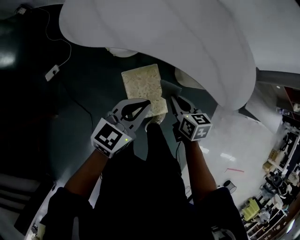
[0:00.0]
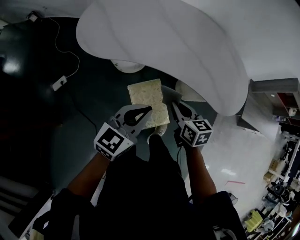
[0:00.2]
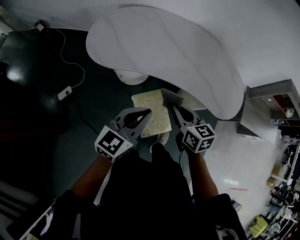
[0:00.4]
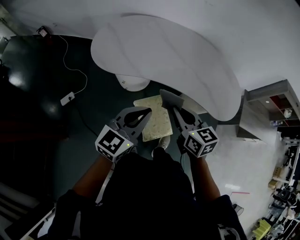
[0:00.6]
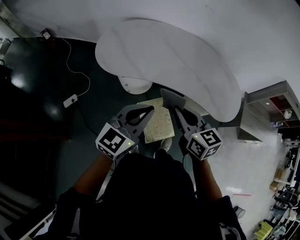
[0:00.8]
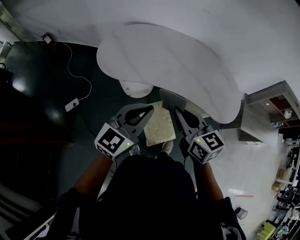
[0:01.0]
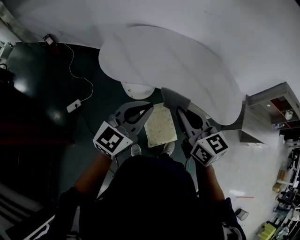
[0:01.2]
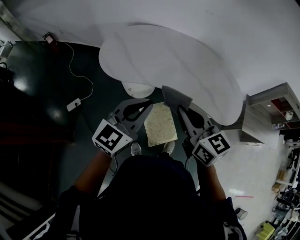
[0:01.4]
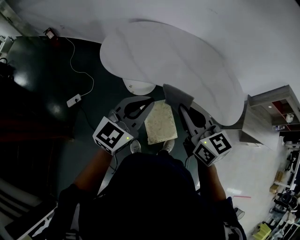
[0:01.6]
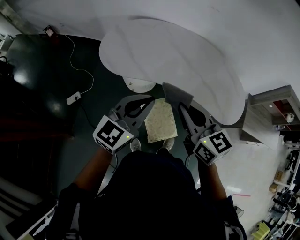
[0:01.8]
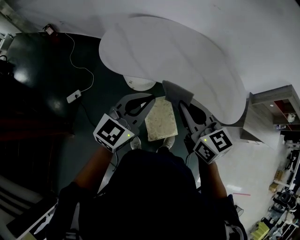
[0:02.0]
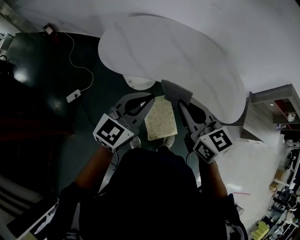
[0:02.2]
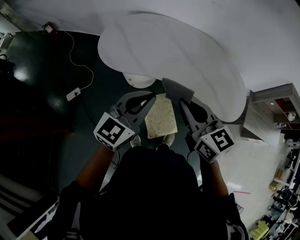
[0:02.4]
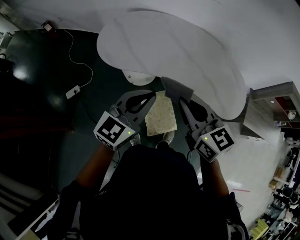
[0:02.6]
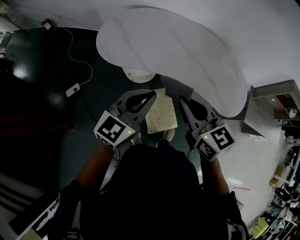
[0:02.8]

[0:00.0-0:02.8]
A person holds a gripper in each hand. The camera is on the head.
0:00.0 to 0:01.4: The right gripper is displaced upward by some 35 cm, and turns by approximately 30 degrees. The left gripper goes about 25 cm upward and to the left, and rotates approximately 20 degrees.
0:01.4 to 0:02.8: The grippers make only small movements.

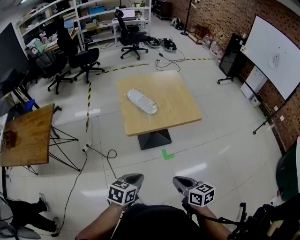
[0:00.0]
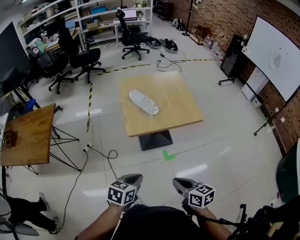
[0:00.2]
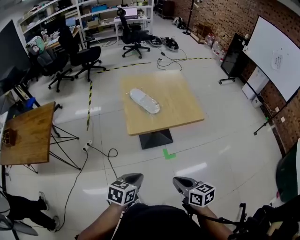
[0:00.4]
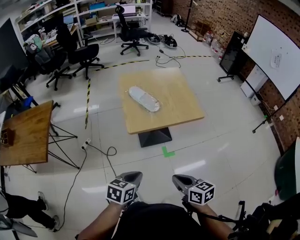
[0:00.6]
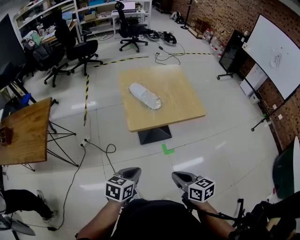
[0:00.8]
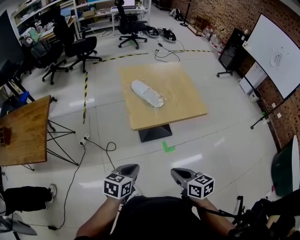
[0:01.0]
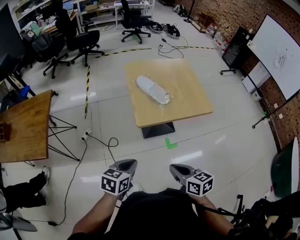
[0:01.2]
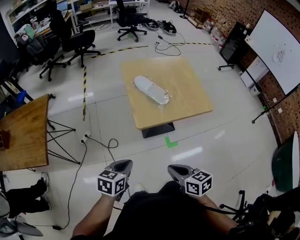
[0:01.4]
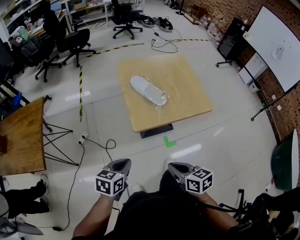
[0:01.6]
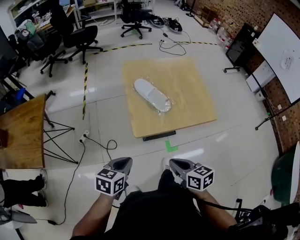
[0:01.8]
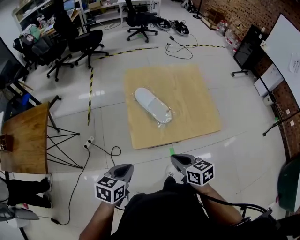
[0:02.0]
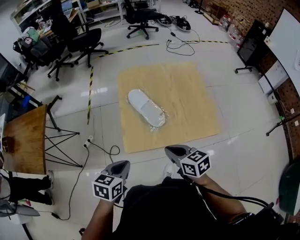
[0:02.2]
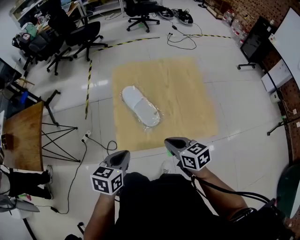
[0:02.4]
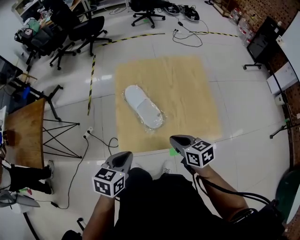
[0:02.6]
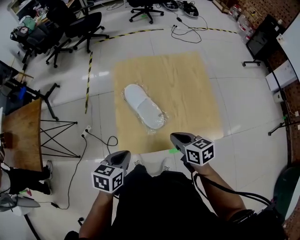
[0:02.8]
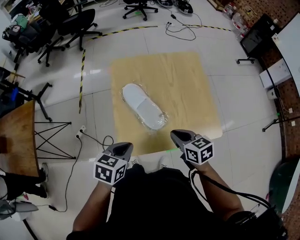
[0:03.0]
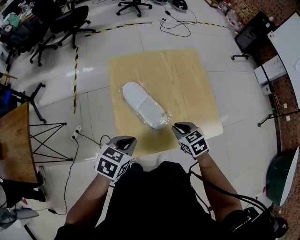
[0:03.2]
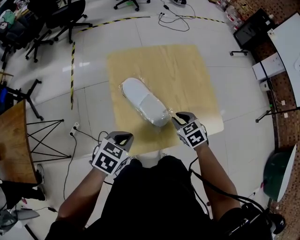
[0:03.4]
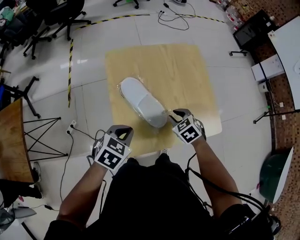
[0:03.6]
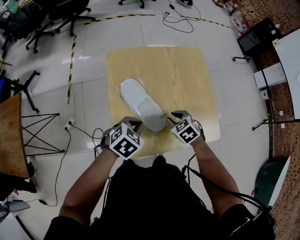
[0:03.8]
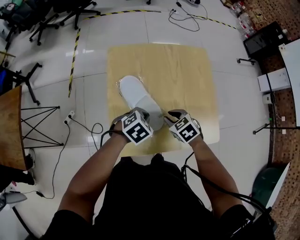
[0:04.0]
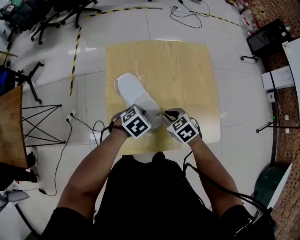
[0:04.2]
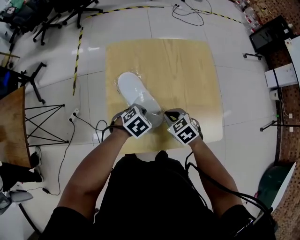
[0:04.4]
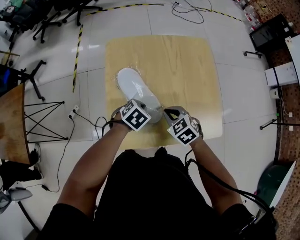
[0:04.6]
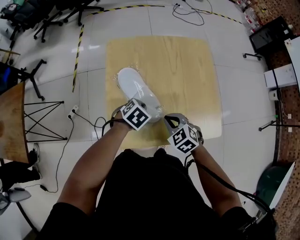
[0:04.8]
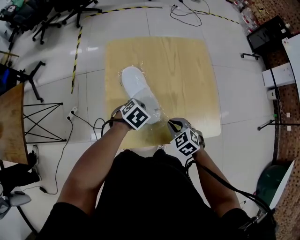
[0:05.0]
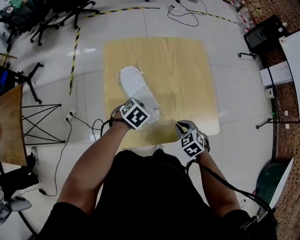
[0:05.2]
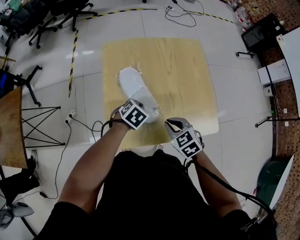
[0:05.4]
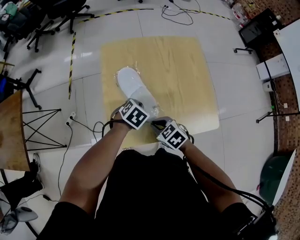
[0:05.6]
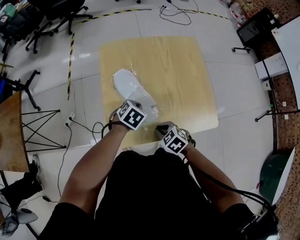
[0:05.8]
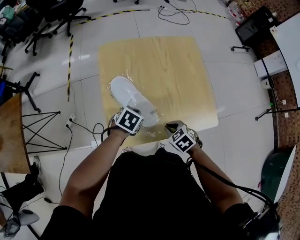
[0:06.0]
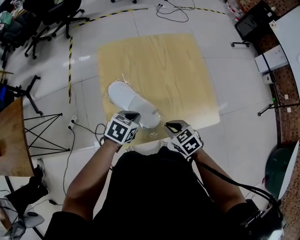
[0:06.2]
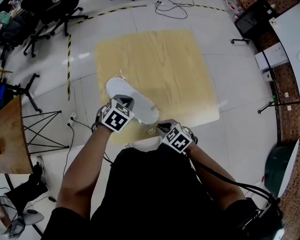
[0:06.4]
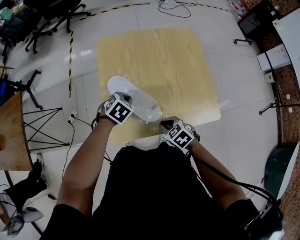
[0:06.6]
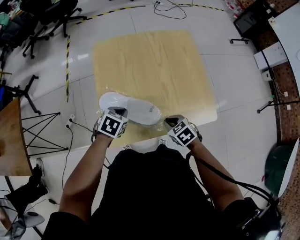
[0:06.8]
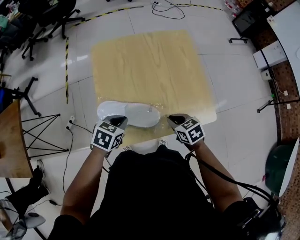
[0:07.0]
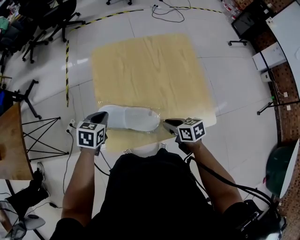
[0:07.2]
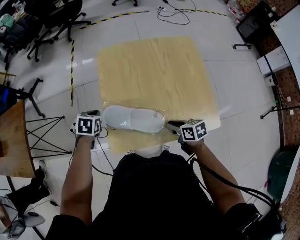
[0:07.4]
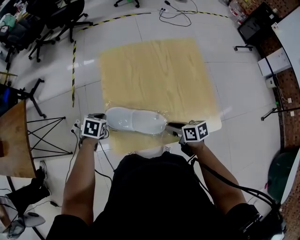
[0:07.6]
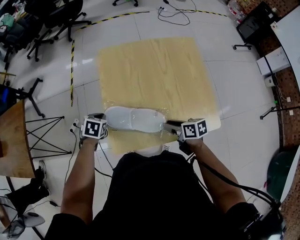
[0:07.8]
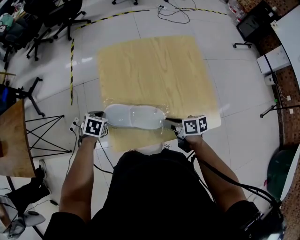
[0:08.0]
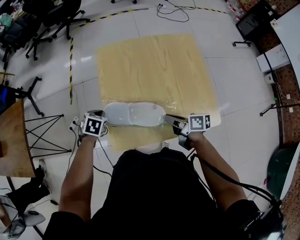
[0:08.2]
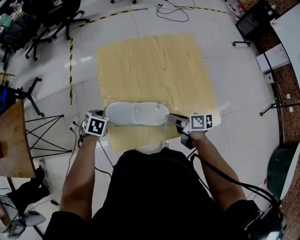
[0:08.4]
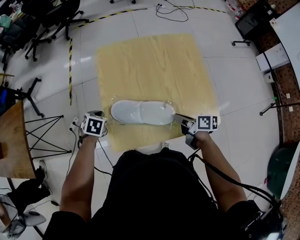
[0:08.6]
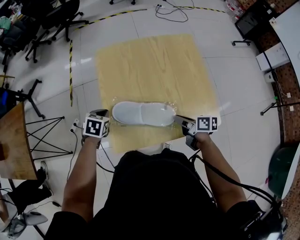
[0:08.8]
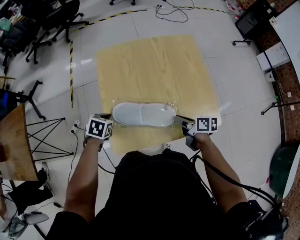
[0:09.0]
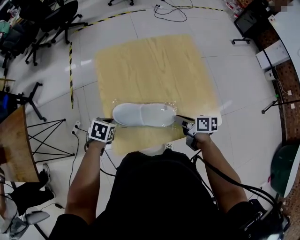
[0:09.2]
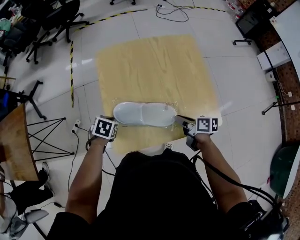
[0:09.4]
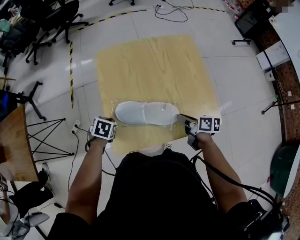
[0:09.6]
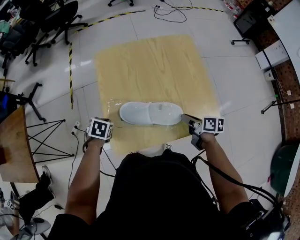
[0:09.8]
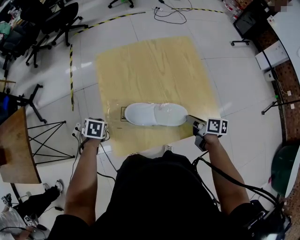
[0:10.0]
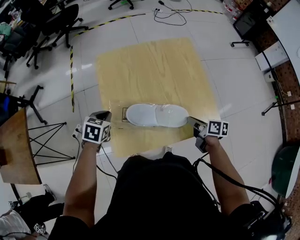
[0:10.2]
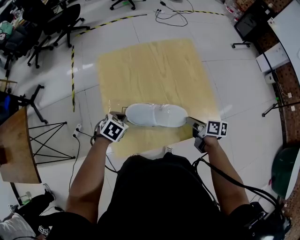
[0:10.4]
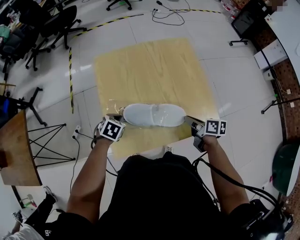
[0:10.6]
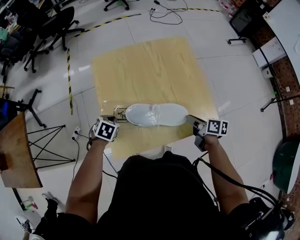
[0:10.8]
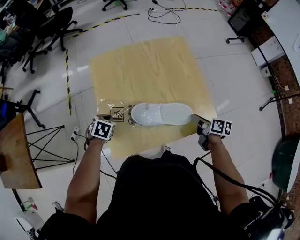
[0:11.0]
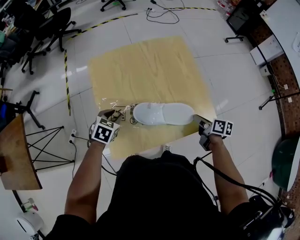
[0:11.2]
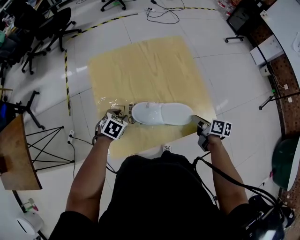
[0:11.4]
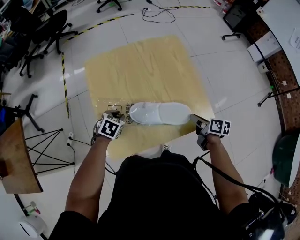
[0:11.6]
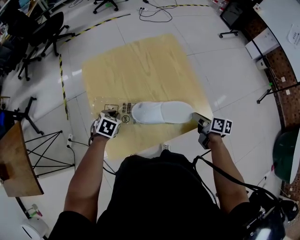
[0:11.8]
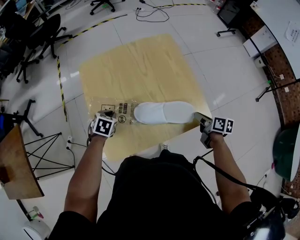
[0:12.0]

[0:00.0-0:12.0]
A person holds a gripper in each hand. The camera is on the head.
0:00.0 to 0:01.6: Both grippers travel together to the left and forward, about 15 cm.
0:01.6 to 0:03.0: The grippers both shift forward and to the right by some 30 cm.
0:03.0 to 0:04.4: The left gripper heads downward, forward and to the right, covering approximately 20 cm, and swivels some 30 degrees. Meanwhile the right gripper travels downward and forward by about 15 cm, and changes its angle by roughly 30 degrees.
0:04.4 to 0:06.0: The right gripper goes left and right, some 10 cm each way, reversing 2 times.
0:06.0 to 0:07.6: The right gripper changes its angle by about 50 degrees. The left gripper ends up approximately 20 cm from where it was.
0:07.6 to 0:09.0: The right gripper goes some 5 cm to the right, and rotates roughly 20 degrees.
0:09.0 to 0:10.4: Both grippers travel together to the right, about 5 cm.
0:10.4 to 0:12.0: The right gripper heads to the right, covering some 10 cm. Meanwhile the left gripper travels to the left and back again, some 5 cm each way, and opens, then closes again.

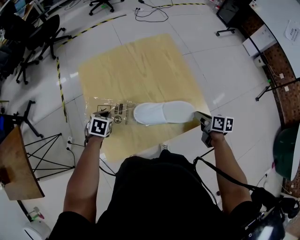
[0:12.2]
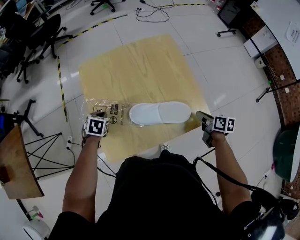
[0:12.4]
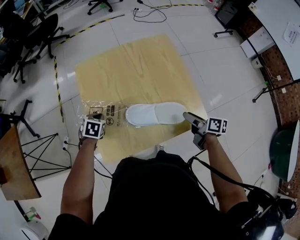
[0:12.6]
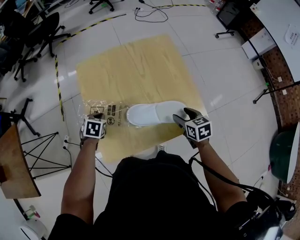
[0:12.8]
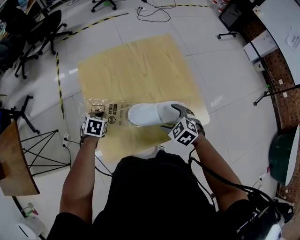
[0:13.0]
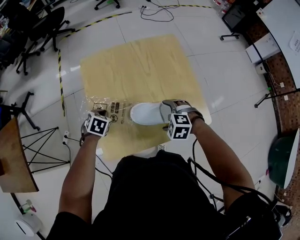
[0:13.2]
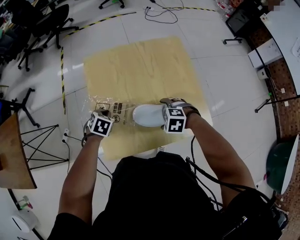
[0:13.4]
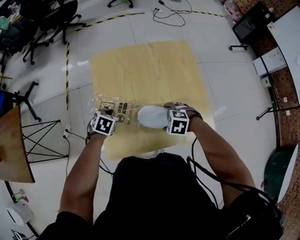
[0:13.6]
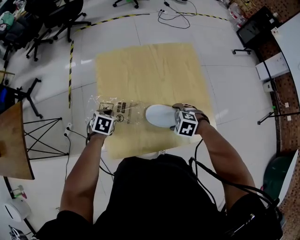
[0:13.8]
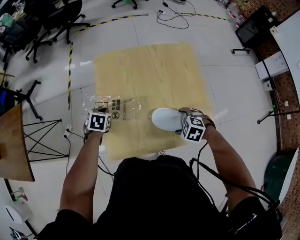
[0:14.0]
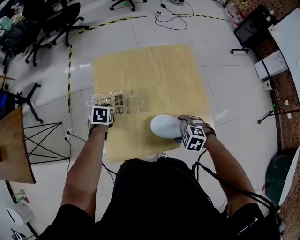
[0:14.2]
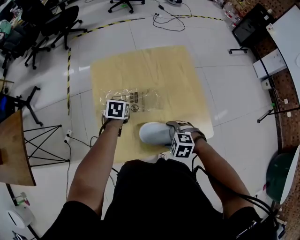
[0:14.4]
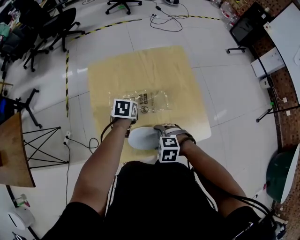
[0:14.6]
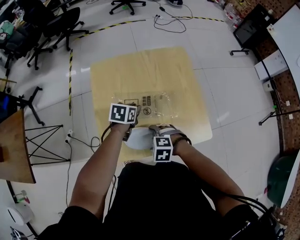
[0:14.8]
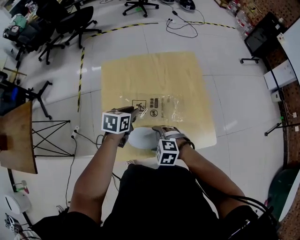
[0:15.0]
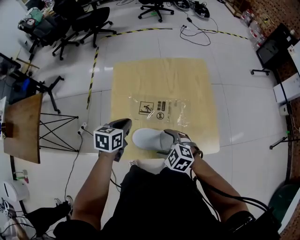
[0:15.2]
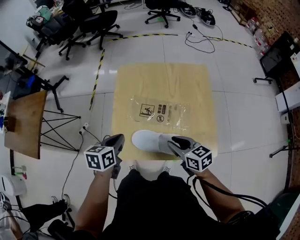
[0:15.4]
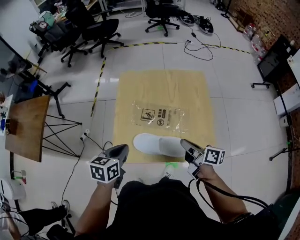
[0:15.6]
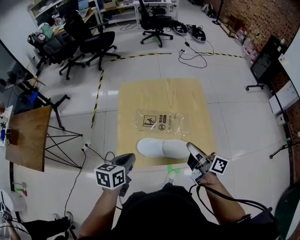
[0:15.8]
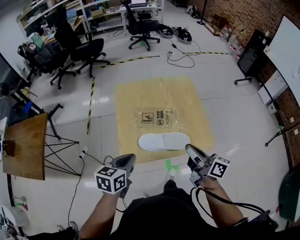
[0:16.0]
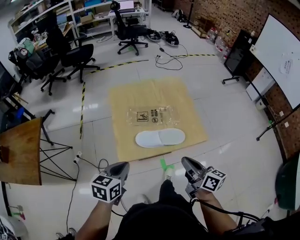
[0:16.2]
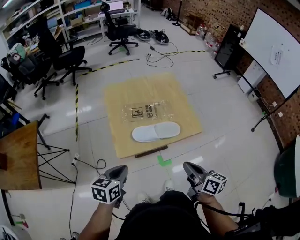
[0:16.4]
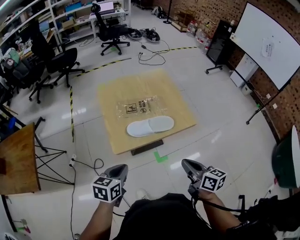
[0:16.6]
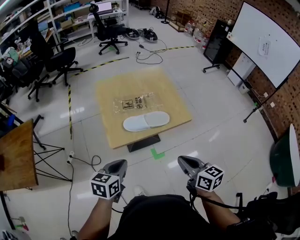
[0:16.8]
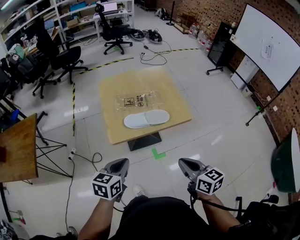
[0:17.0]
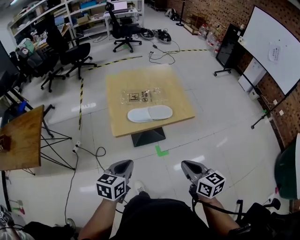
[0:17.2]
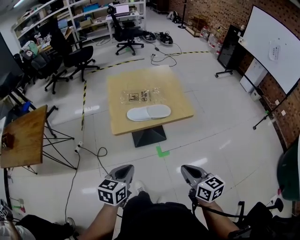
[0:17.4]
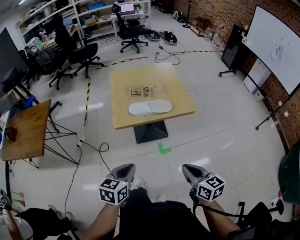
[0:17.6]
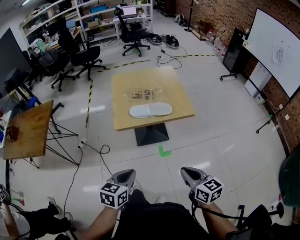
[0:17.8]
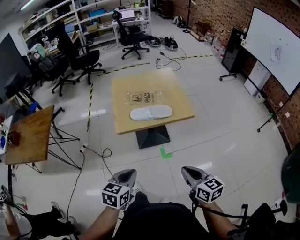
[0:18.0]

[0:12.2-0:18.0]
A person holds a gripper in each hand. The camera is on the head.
0:12.2 to 0:13.6: The right gripper changes place by roughly 20 cm, twists roughly 90 degrees counterclockwise, seen from behind, and opens its fingers.
0:13.6 to 0:15.0: The left gripper shifts by roughly 15 cm, turns by approximately 30 degrees, and opens up; the right gripper changes place by some 10 cm.
0:15.0 to 0:16.6: The right gripper ends up some 30 cm from where it was, twists about 80 degrees clockwise, seen from behind, and closes its fingers, while the left gripper shifts by about 35 cm, and closes.
0:16.6 to 0:18.0: The left gripper is displaced backward and to the right by roughly 20 cm, while the right gripper travels backward by approximately 15 cm.

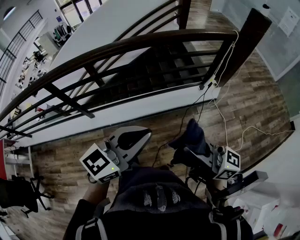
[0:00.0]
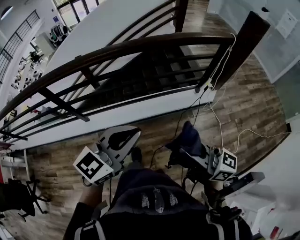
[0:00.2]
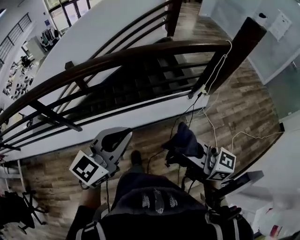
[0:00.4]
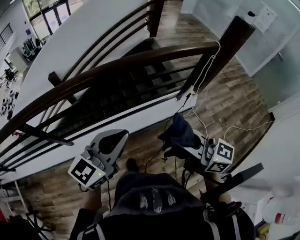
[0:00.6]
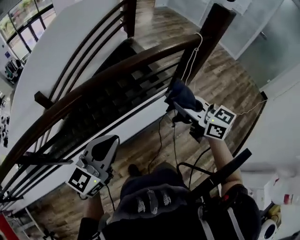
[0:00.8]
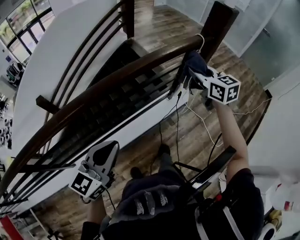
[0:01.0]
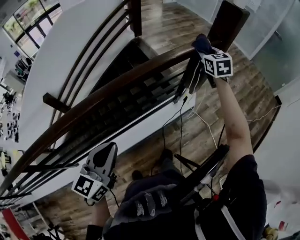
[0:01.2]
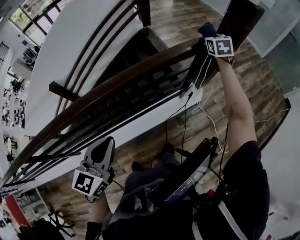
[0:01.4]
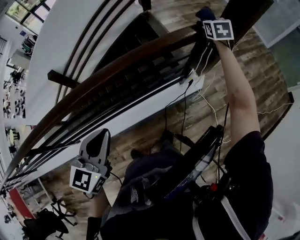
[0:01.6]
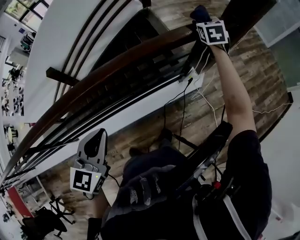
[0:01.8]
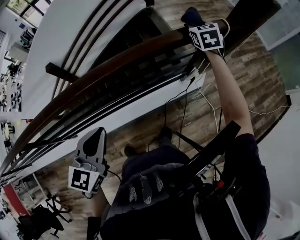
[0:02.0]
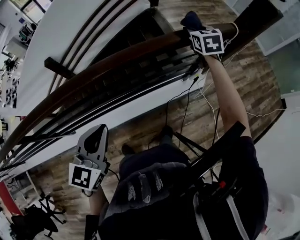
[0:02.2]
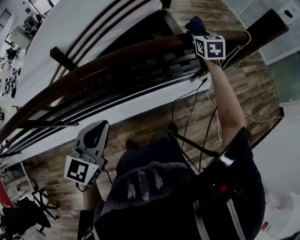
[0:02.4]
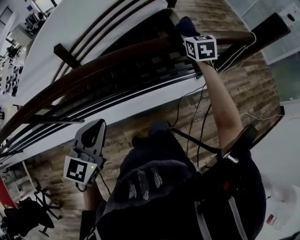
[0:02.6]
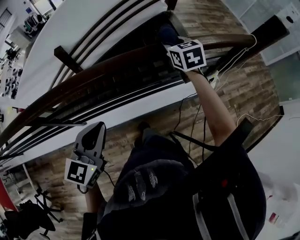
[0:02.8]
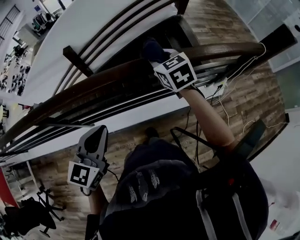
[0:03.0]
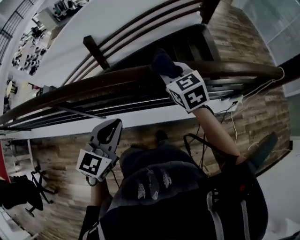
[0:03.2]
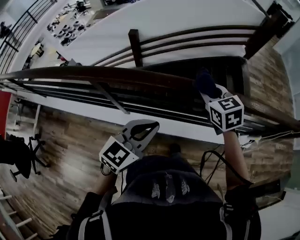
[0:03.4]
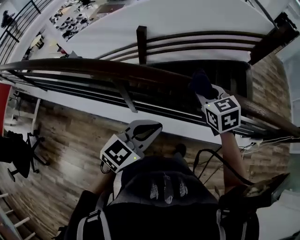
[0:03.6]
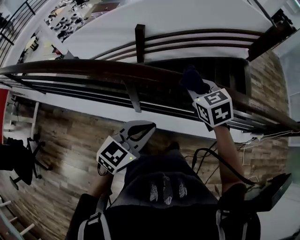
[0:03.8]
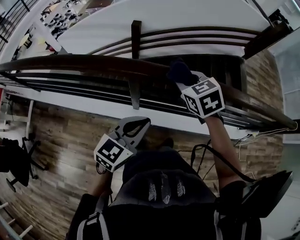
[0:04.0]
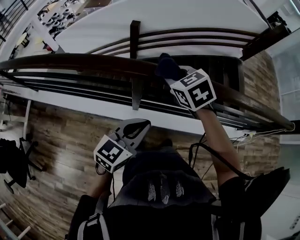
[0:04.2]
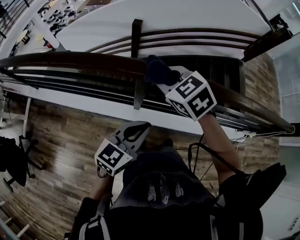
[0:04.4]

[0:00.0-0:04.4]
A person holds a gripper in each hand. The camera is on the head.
0:00.0 to 0:01.4: The left gripper changes place by some 35 cm. Meanwhile the right gripper ends up some 80 cm from where it was, and tilts its fingers approximately 50 degrees downward.
0:01.4 to 0:03.0: The right gripper changes place by some 70 cm, and turns by roughly 40 degrees, while the left gripper shifts by roughly 35 cm.
0:03.0 to 0:04.4: The right gripper shifts about 60 cm to the left, and turns by approximately 40 degrees, while the left gripper shifts about 40 cm to the left.
